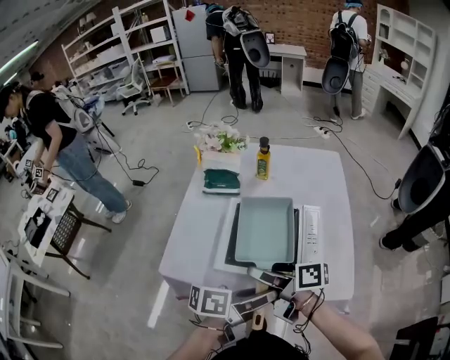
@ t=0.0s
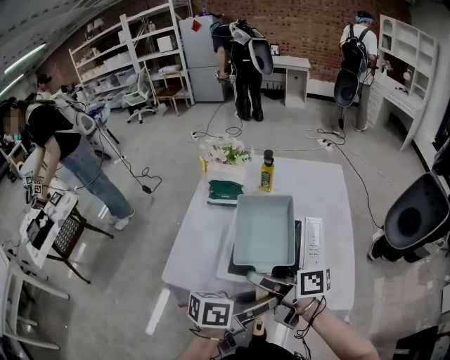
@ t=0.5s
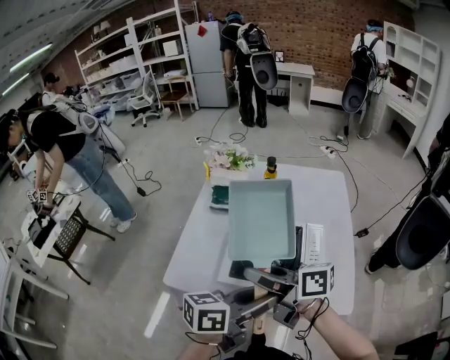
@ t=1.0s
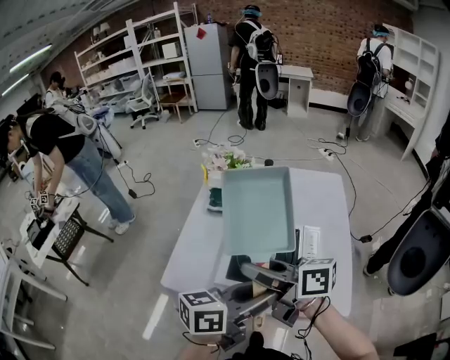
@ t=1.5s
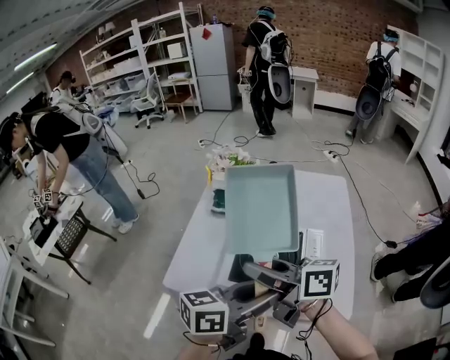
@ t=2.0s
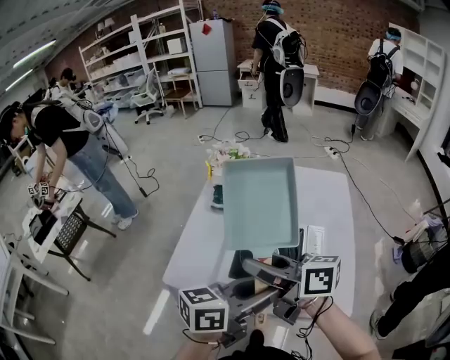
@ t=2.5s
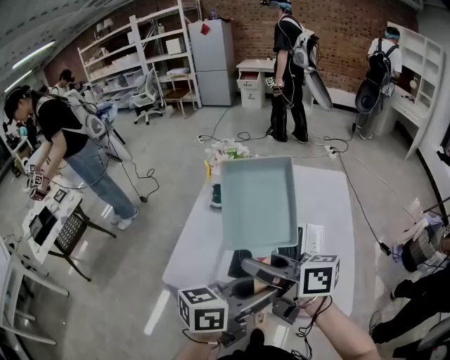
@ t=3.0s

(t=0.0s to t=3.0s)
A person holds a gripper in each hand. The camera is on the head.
t=0.0s - t=1.5s: The grippers both shift upward by about 10 cm. The left gripper rotates approximately 30 degrees, while the right gripper rotates approximately 20 degrees.
t=1.5s - t=3.0s: The grippers move only a little.

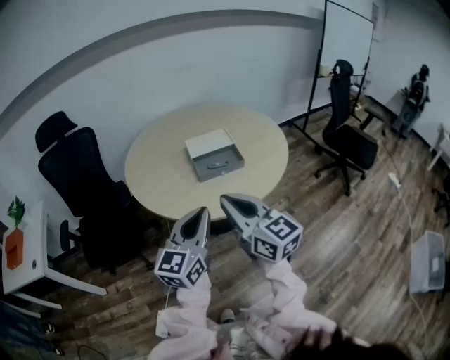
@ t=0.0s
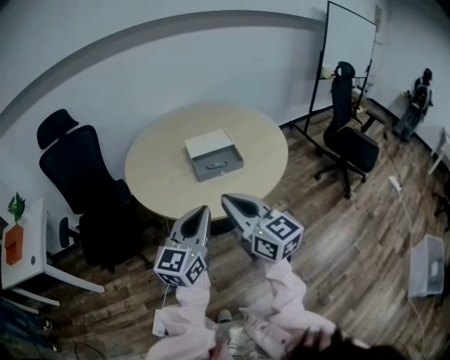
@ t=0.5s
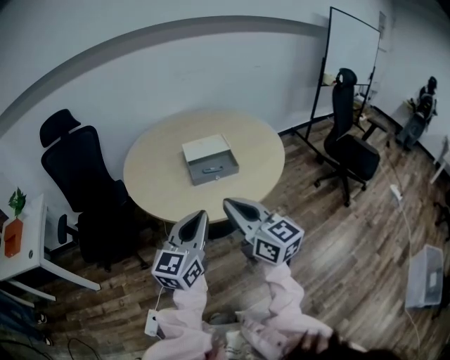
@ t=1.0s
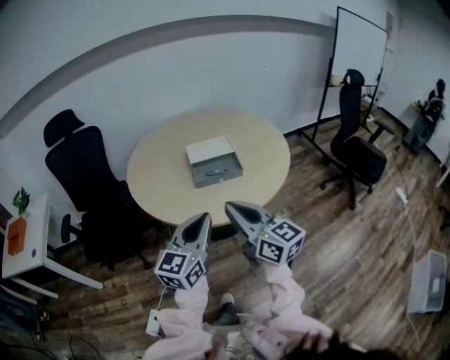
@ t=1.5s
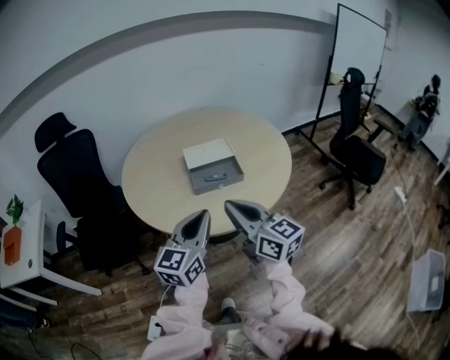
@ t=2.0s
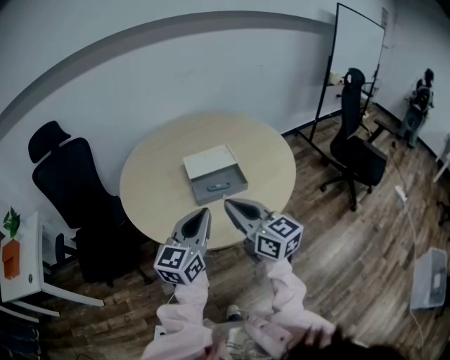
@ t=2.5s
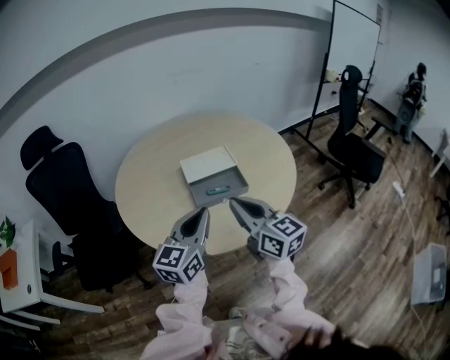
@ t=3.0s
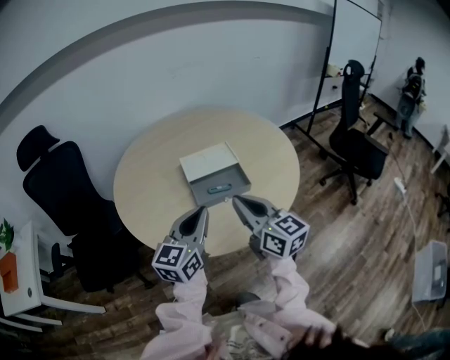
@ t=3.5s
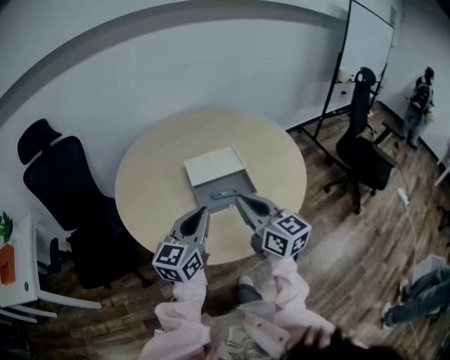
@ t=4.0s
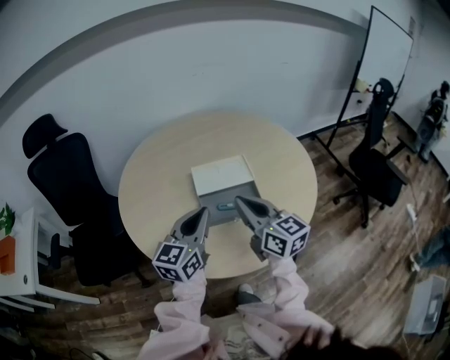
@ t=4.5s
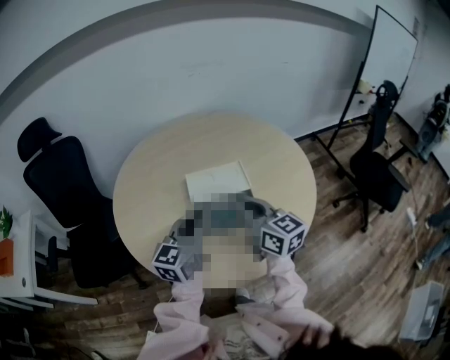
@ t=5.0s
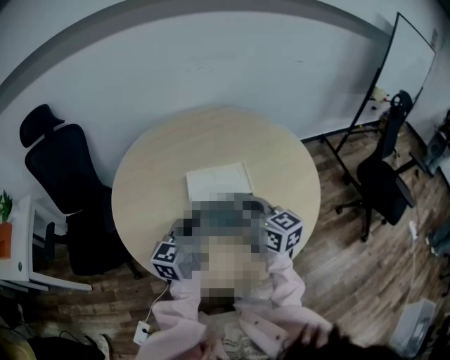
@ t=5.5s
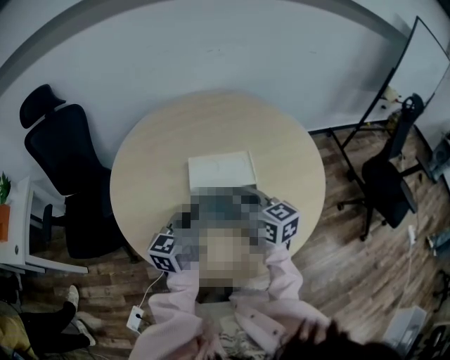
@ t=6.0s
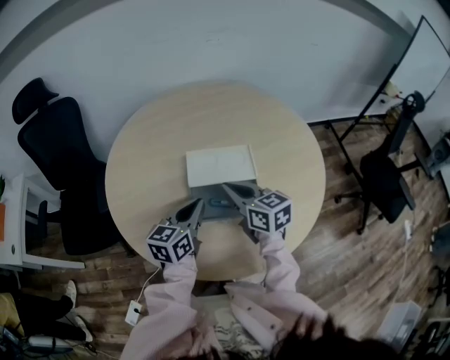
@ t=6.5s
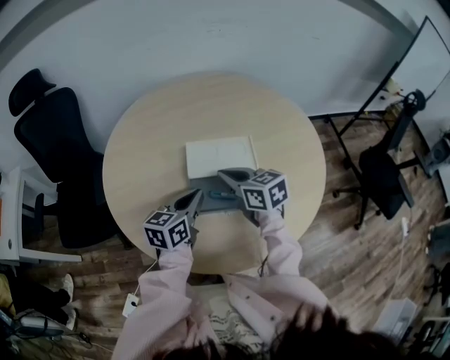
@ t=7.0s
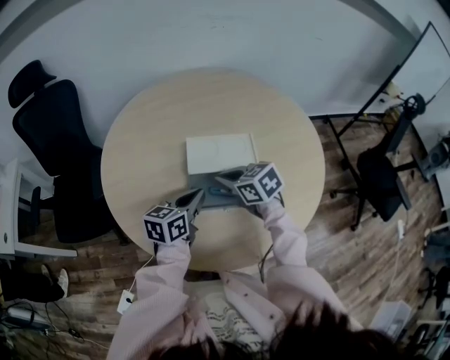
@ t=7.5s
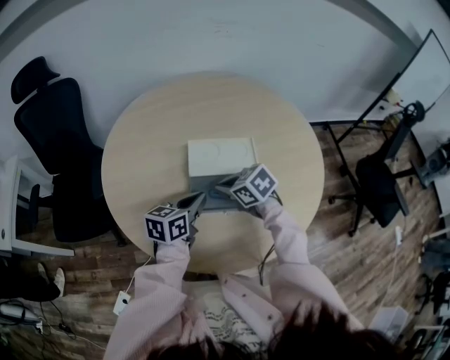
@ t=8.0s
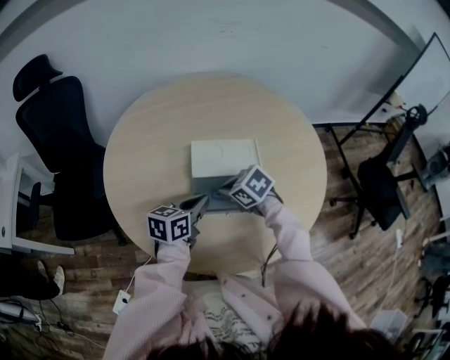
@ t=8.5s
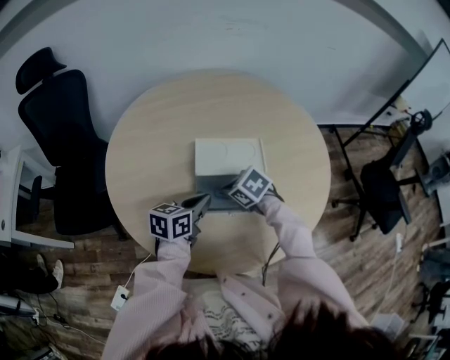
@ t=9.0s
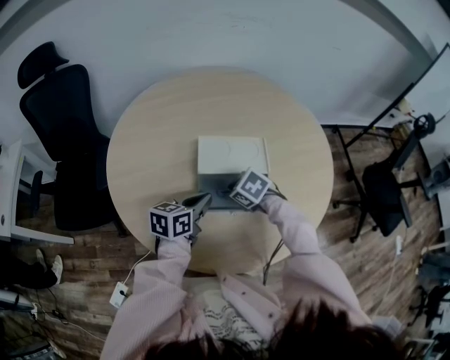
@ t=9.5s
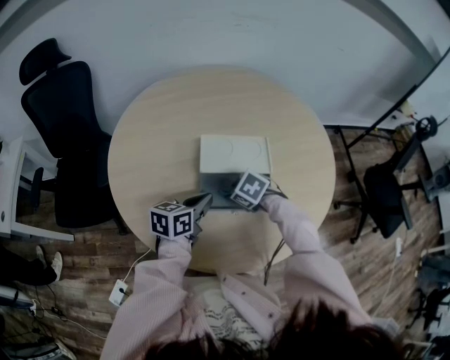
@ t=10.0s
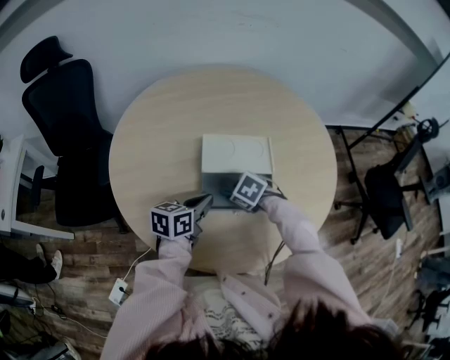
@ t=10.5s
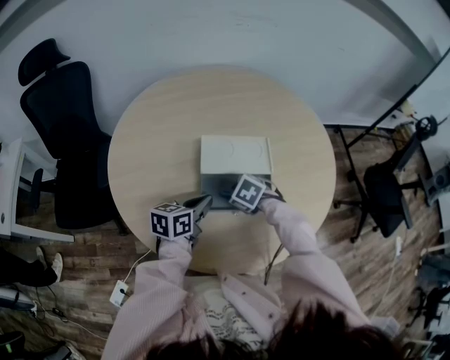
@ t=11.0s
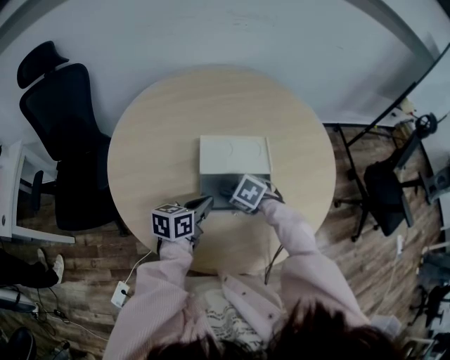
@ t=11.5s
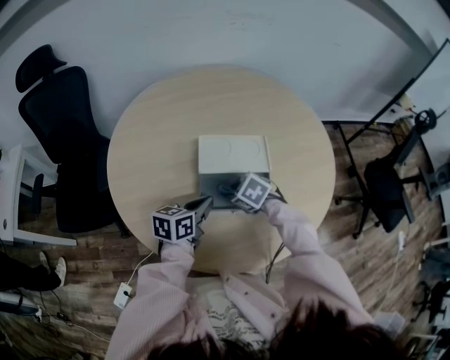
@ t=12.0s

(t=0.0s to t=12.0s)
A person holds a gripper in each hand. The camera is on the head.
t=0.0s - t=2.0s: The right gripper travels forward and to the right by about 10 cm, while the left gripper is displaced forward by some 5 cm.
t=2.0s - t=4.0s: Both grippers move forward, approximately 15 cm.
t=4.0s - t=6.0s: The left gripper is displaced forward and downward by some 15 cm. Meanwhile the right gripper goes about 15 cm forward.
t=6.0s - t=8.0s: The left gripper heads downward, covering some 10 cm. The right gripper is displaced downward by approximately 10 cm, and angles its fingers downward, by approximately 40 degrees.
t=8.0s - t=10.0s: The right gripper goes about 10 cm downward, rotates about 30 degrees, and opens.
t=10.0s - t=12.0s: The grippers stay close to where they were, moving slightly.

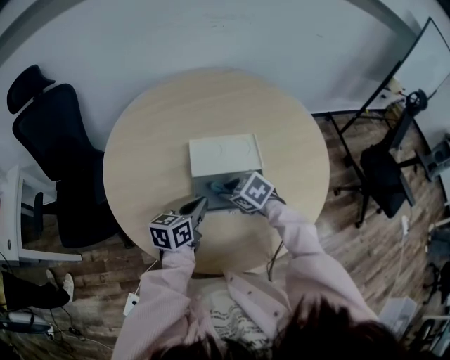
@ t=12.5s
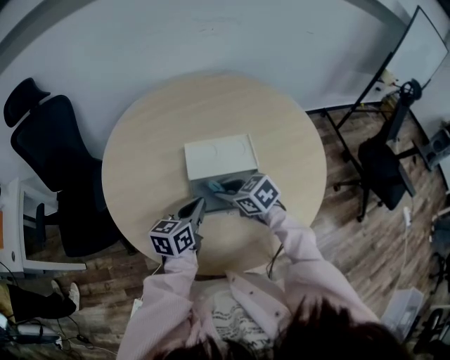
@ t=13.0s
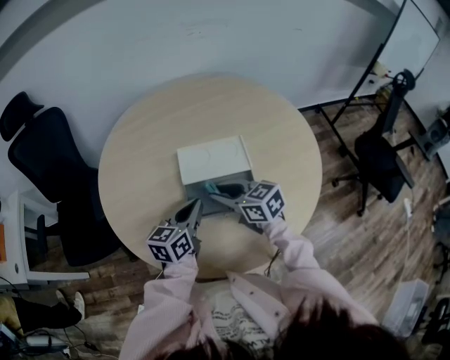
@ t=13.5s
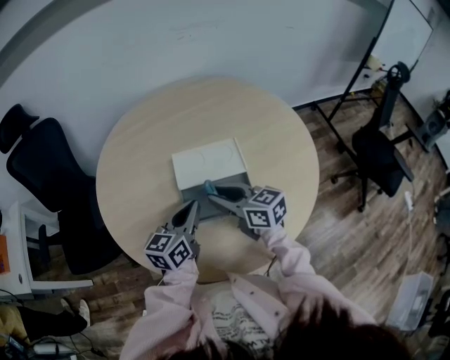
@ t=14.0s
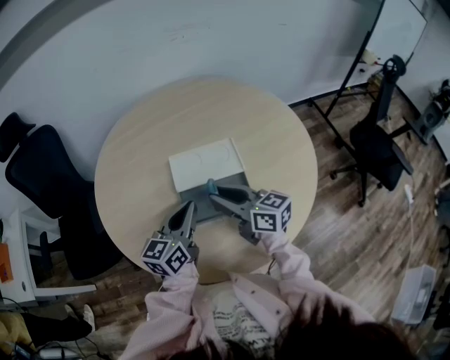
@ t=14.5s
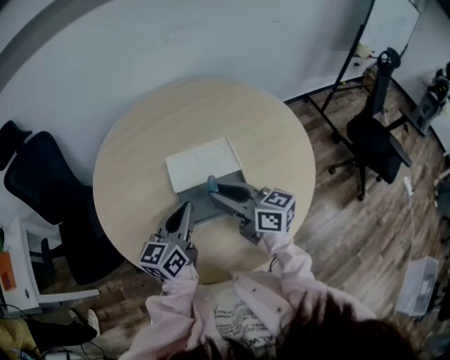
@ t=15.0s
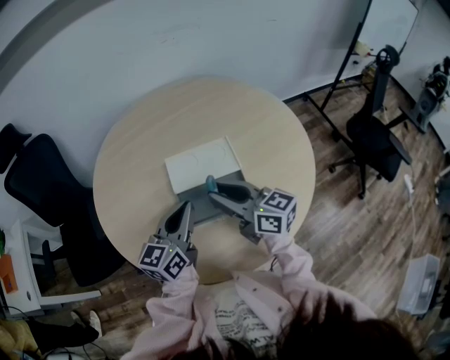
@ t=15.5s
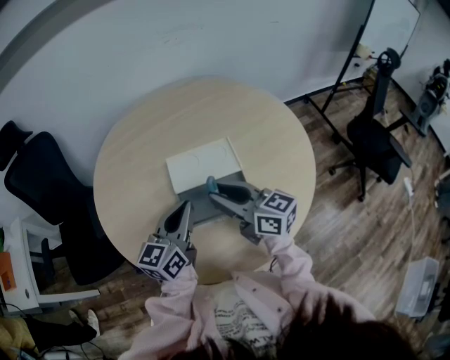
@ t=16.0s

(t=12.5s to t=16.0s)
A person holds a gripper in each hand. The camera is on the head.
t=12.5s - t=14.5s: The left gripper shifts some 10 cm upward, while the right gripper is displaced upward by approximately 15 cm, and angles its fingers upward, by some 50 degrees.
t=14.5s - t=16.0s: There are only small adjustments of the grippers.

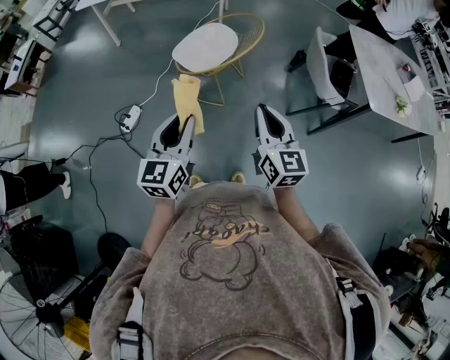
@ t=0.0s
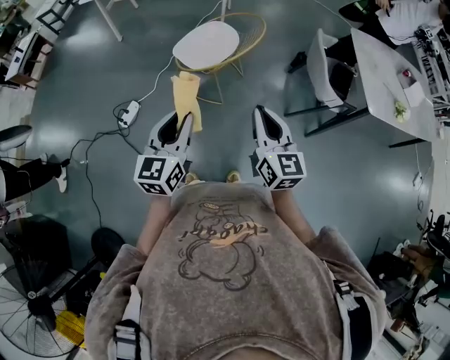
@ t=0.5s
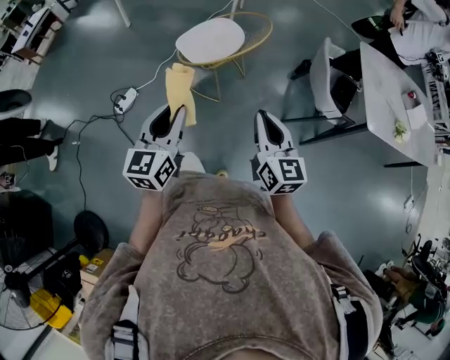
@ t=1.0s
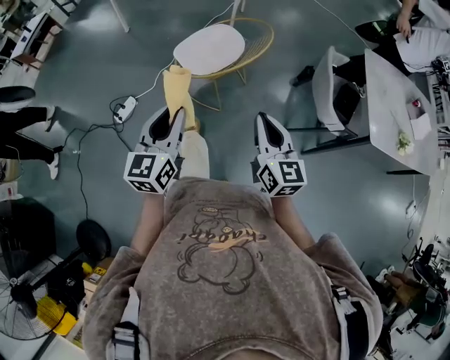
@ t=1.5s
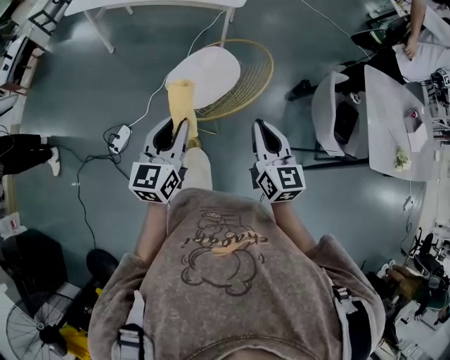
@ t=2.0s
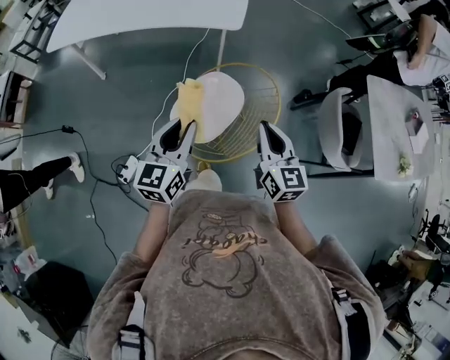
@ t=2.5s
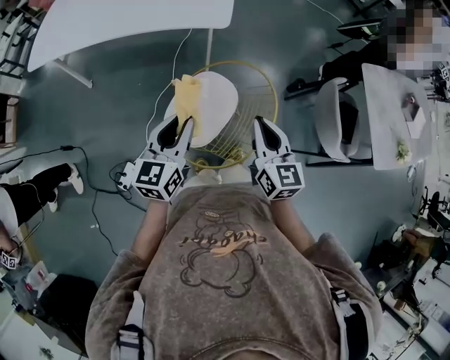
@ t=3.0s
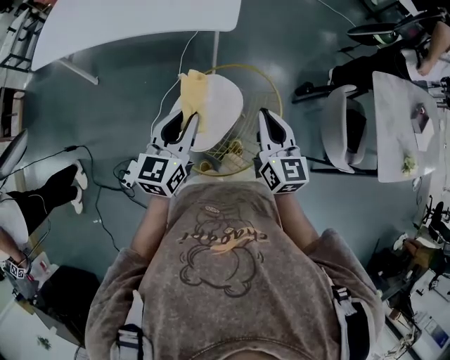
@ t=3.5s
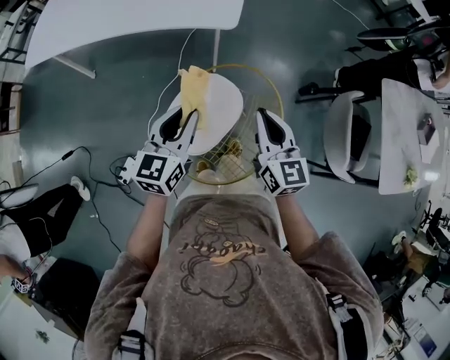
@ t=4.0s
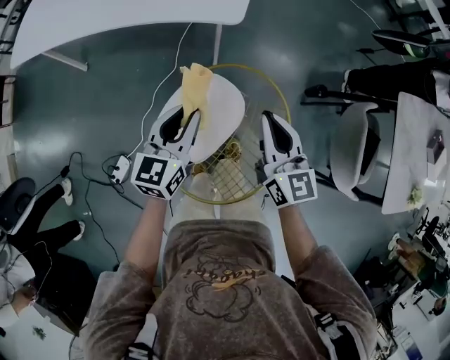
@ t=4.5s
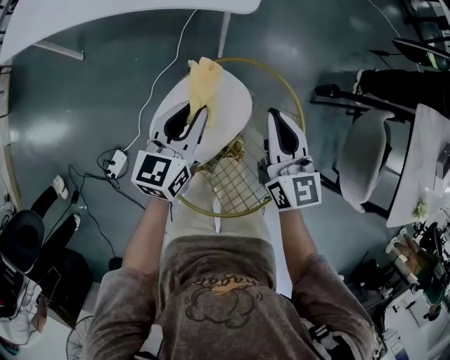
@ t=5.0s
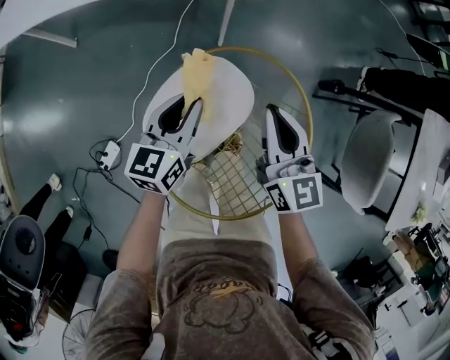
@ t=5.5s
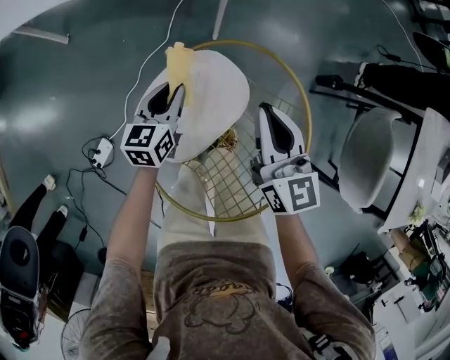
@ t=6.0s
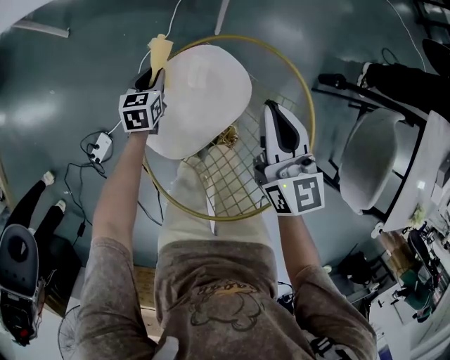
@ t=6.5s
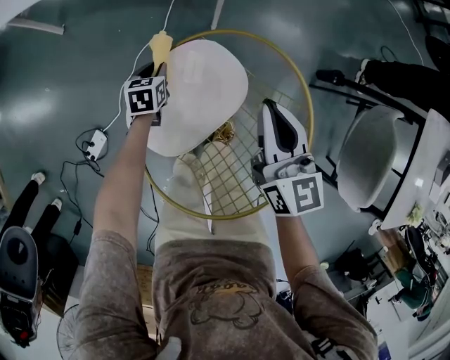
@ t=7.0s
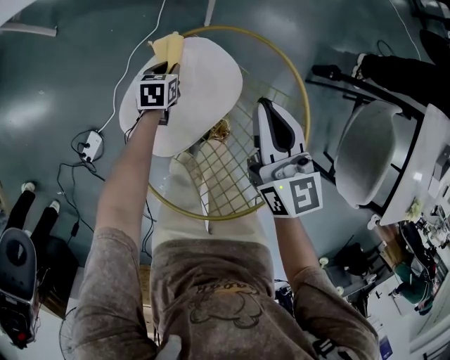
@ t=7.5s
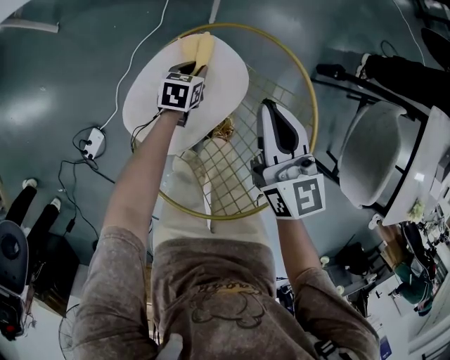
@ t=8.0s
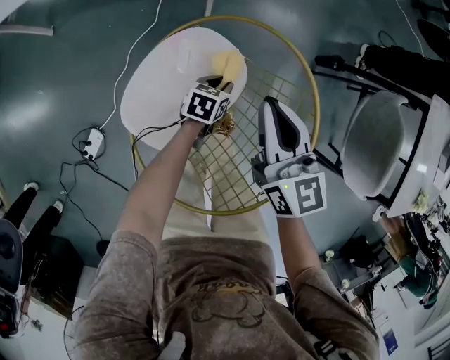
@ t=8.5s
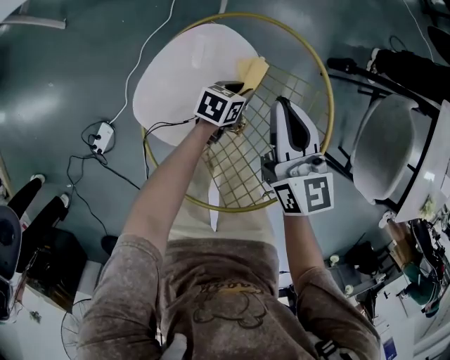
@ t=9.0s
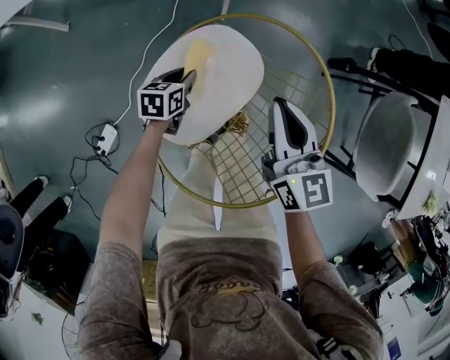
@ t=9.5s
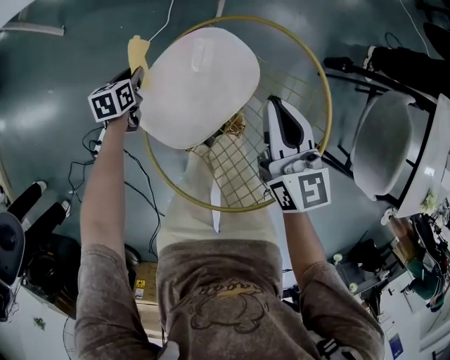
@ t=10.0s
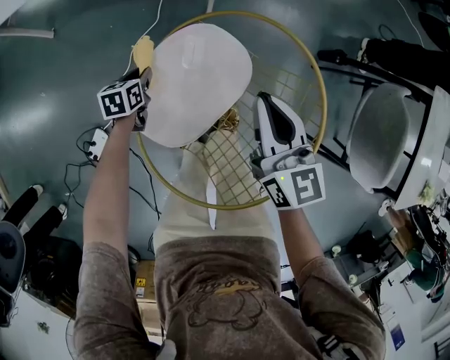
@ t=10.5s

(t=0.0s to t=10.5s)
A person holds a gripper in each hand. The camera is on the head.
t=0.0s - t=2.0s: Both grippers move forward, approximately 25 cm.
t=2.0s - t=4.0s: The two grippers go roughly 35 cm forward.
t=4.0s - t=6.5s: The left gripper travels downward by approximately 40 cm, and changes its angle by about 30 degrees. Meanwhile the right gripper is displaced downward and forward by roughly 20 cm.
t=6.5s - t=8.5s: The left gripper heads to the right, covering some 25 cm, and turns by about 30 degrees.
t=8.5s - t=10.5s: The left gripper goes roughly 25 cm to the left, and swivels about 20 degrees.
